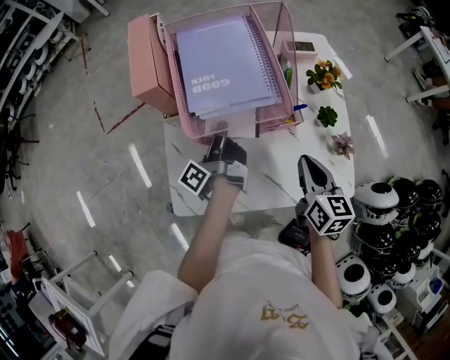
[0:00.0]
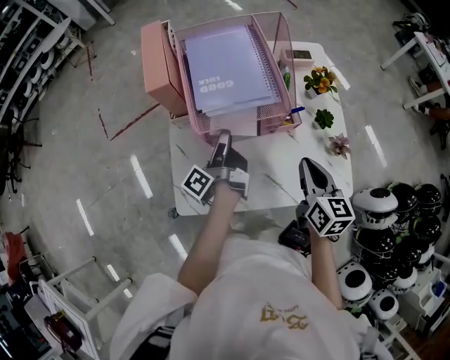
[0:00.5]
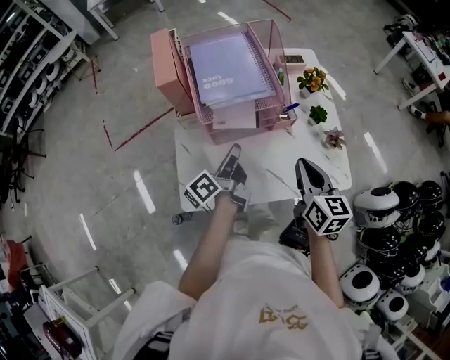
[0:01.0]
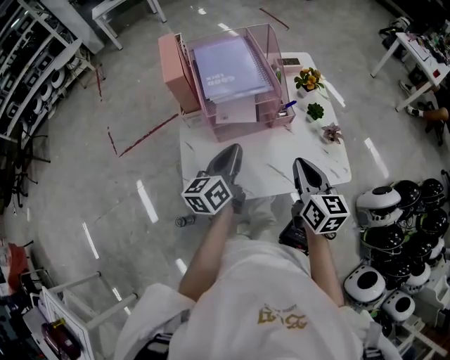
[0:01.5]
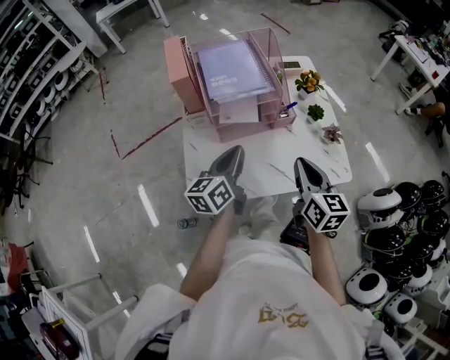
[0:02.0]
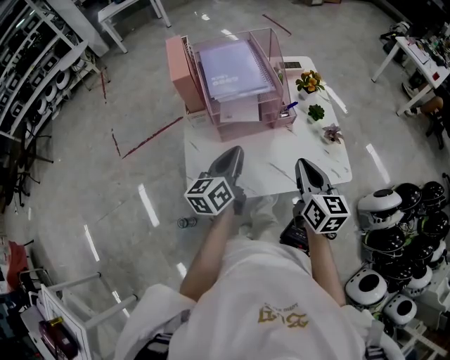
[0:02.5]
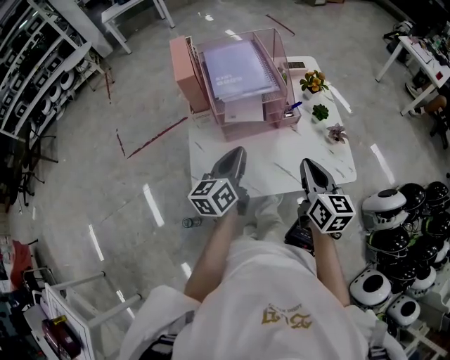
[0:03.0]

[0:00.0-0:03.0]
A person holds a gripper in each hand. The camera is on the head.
0:00.0 to 0:01.5: The right gripper moves about 15 cm.

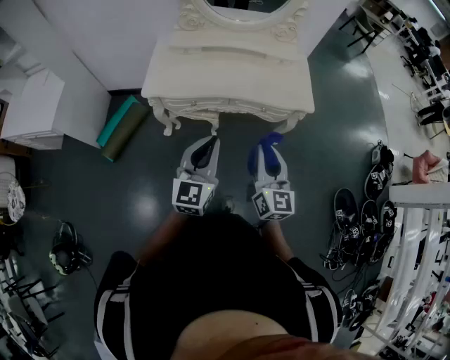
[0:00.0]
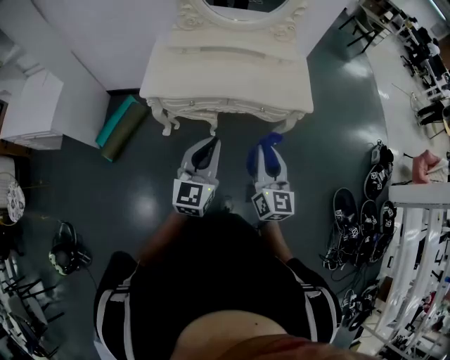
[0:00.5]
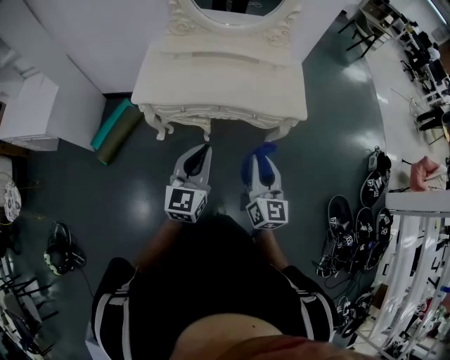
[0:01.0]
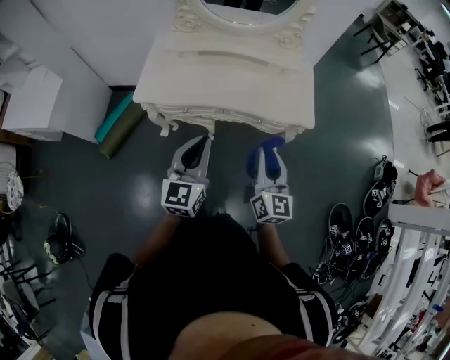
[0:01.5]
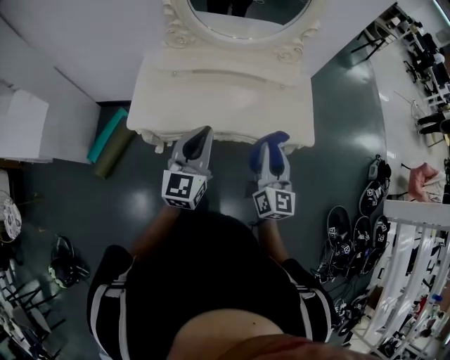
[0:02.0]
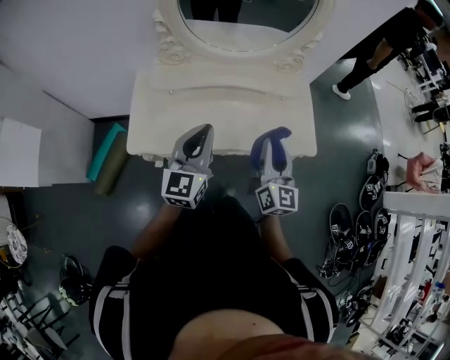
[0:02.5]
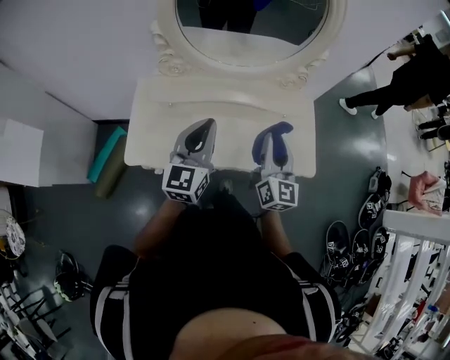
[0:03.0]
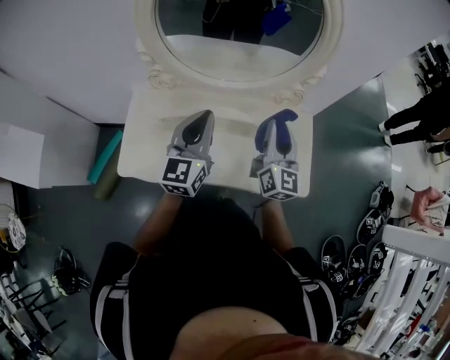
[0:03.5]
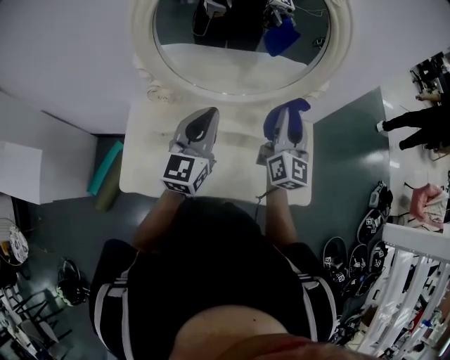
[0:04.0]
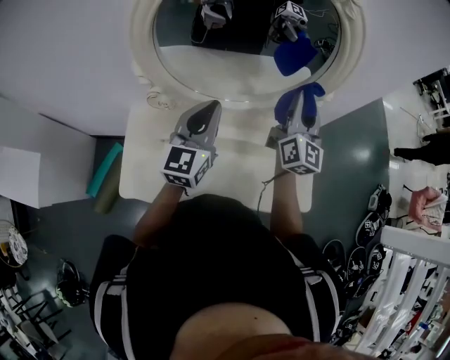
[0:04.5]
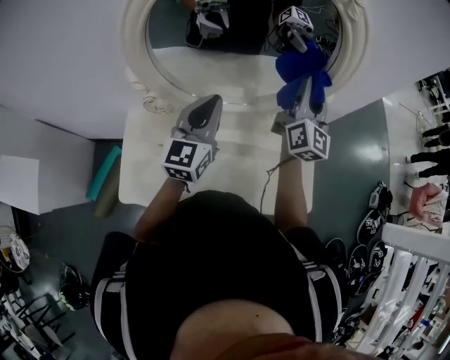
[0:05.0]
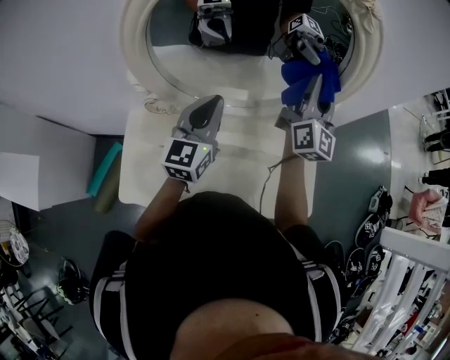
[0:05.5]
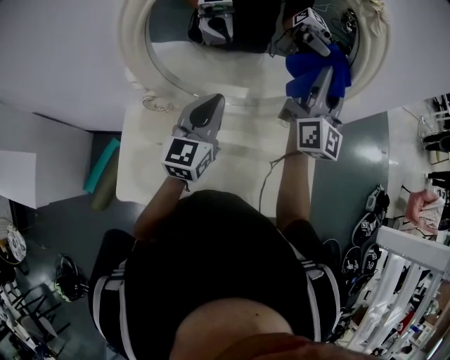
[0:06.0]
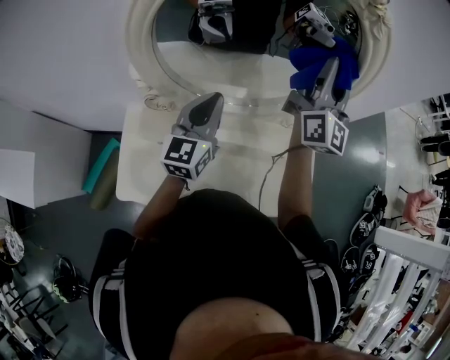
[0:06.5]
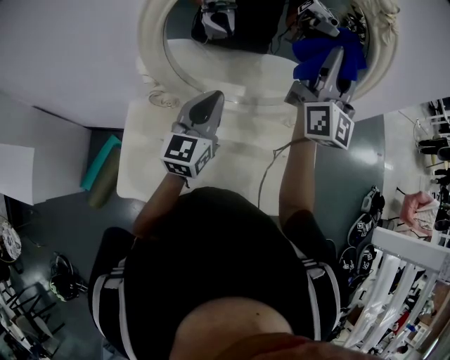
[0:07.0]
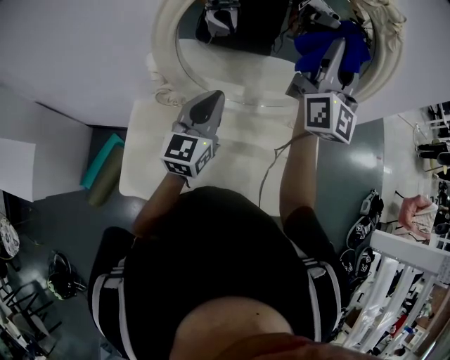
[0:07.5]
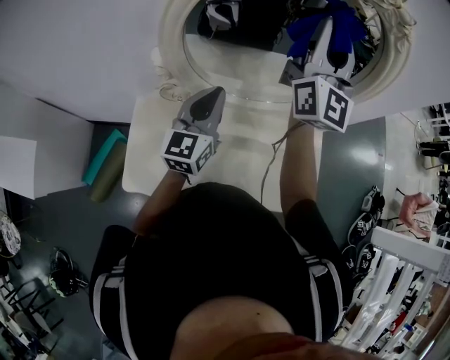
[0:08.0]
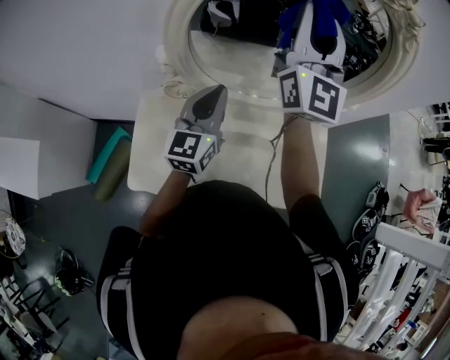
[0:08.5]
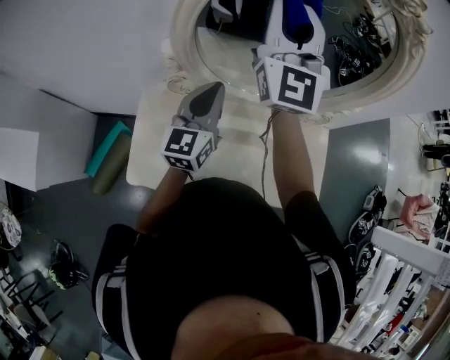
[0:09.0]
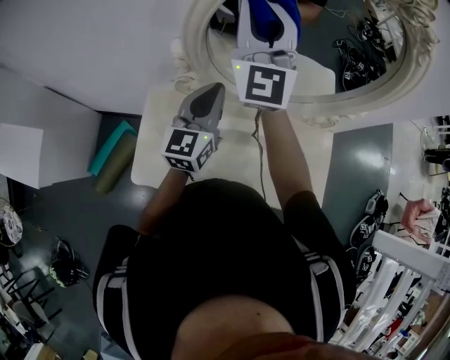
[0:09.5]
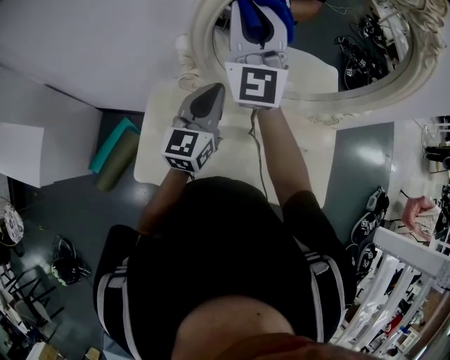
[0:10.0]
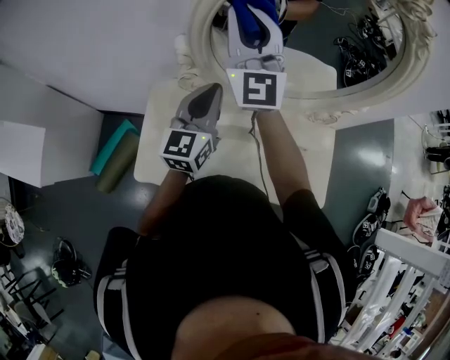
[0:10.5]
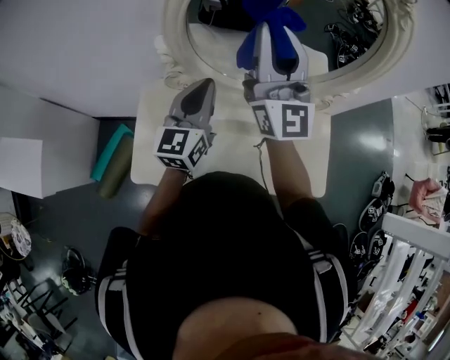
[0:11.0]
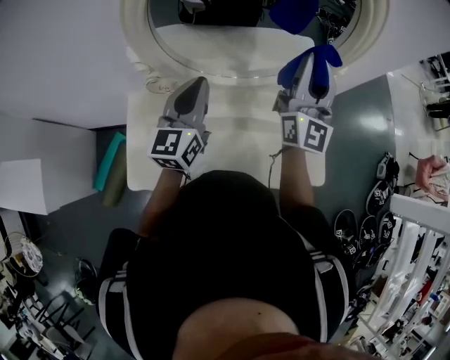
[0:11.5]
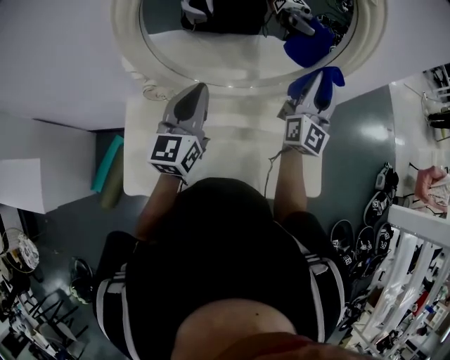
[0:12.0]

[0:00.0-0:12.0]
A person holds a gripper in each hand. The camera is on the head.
0:00.0 to 0:02.0: Both grippers travel together forward, some 25 cm.
0:02.0 to 0:04.0: The two grippers go some 35 cm forward.
0:04.0 to 0:06.0: The right gripper heads forward and upward, covering approximately 20 cm. The left gripper heads forward, covering approximately 10 cm.
0:06.0 to 0:08.0: The left gripper goes some 5 cm to the left; the right gripper heads to the left and upward, covering about 15 cm.
0:08.0 to 0:10.0: The right gripper is displaced to the left by about 20 cm, and changes its angle by about 20 degrees. Meanwhile the left gripper moves to the left, approximately 5 cm.
0:10.0 to 0:12.0: The right gripper is displaced to the right by roughly 40 cm, and rotates some 40 degrees. Meanwhile the left gripper shifts some 10 cm to the right.

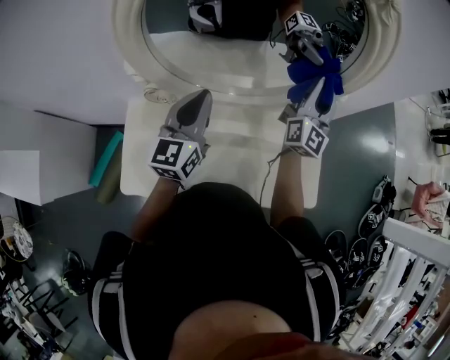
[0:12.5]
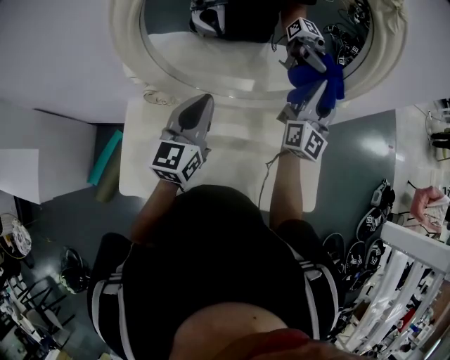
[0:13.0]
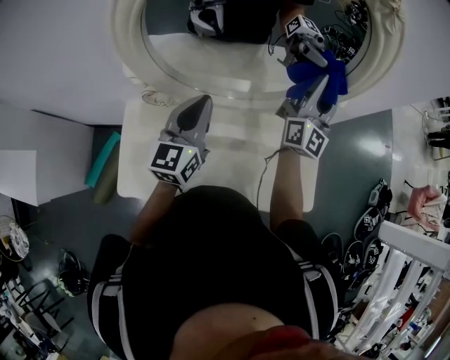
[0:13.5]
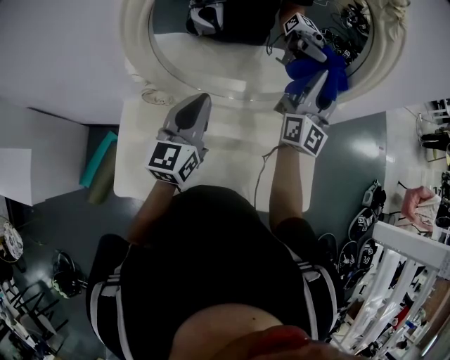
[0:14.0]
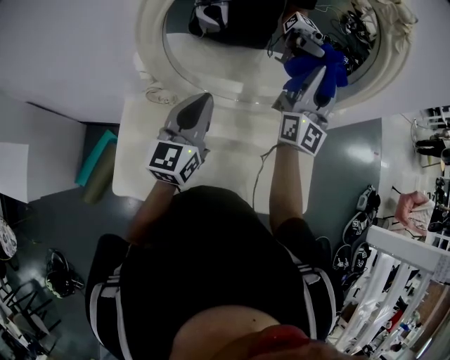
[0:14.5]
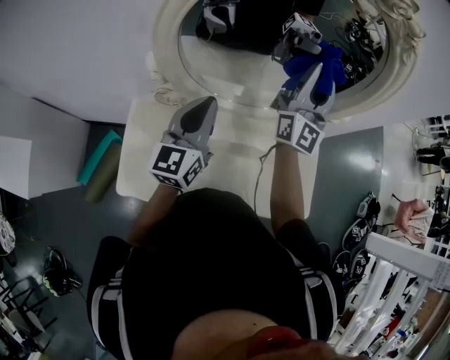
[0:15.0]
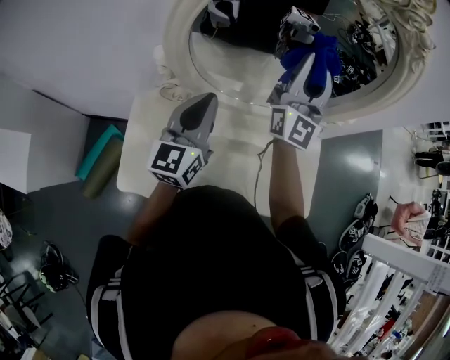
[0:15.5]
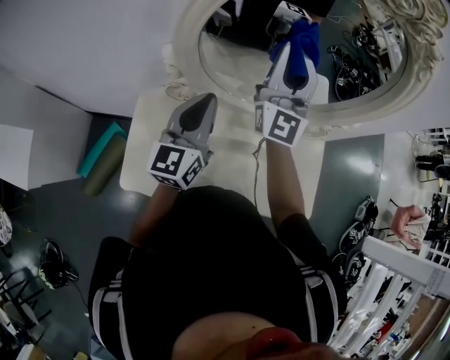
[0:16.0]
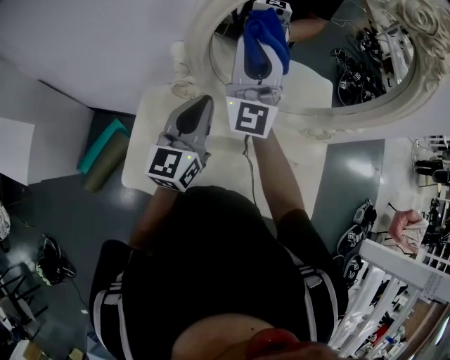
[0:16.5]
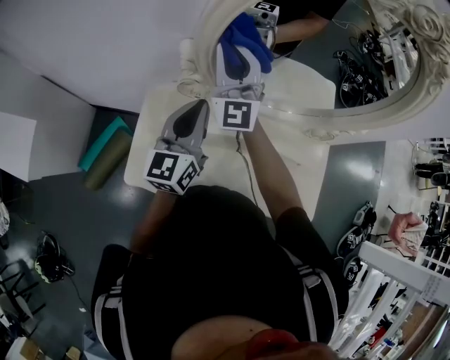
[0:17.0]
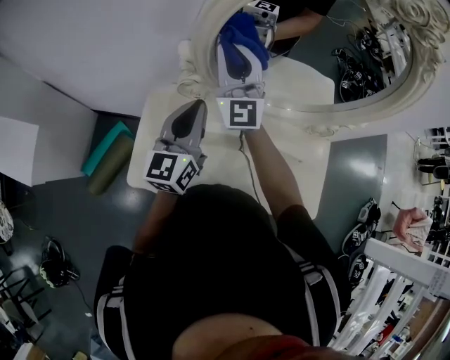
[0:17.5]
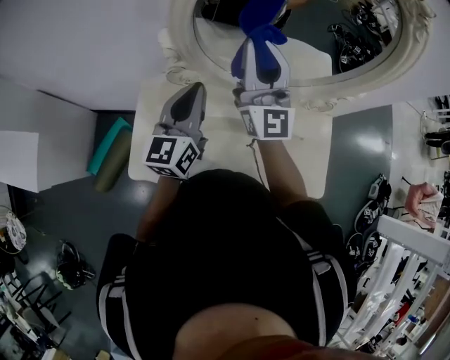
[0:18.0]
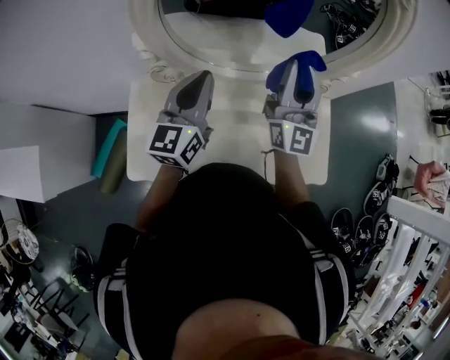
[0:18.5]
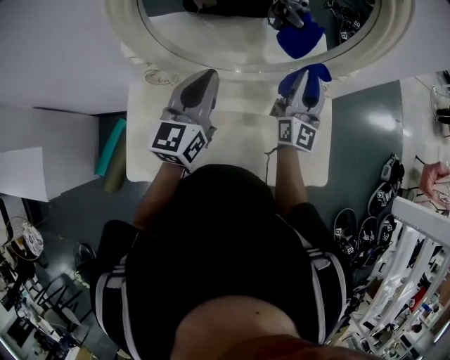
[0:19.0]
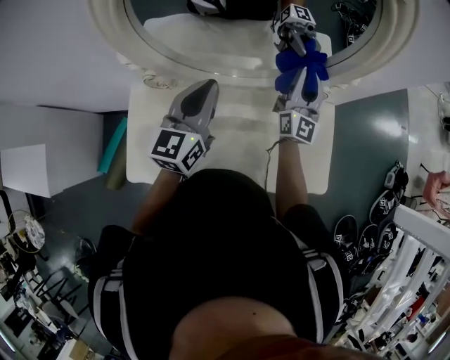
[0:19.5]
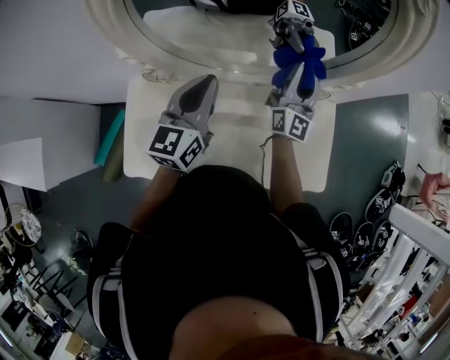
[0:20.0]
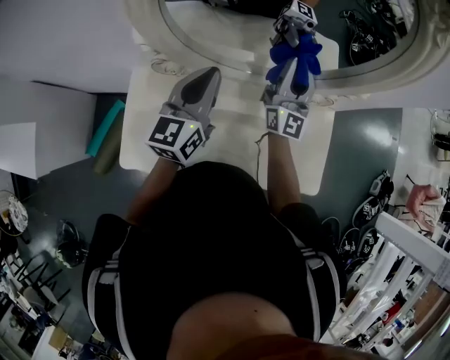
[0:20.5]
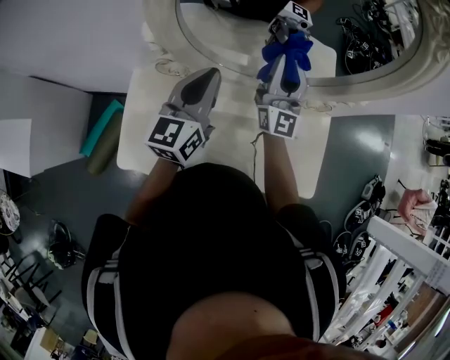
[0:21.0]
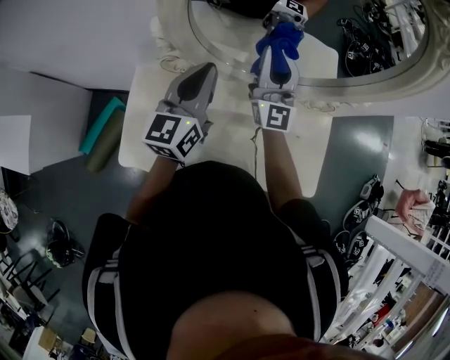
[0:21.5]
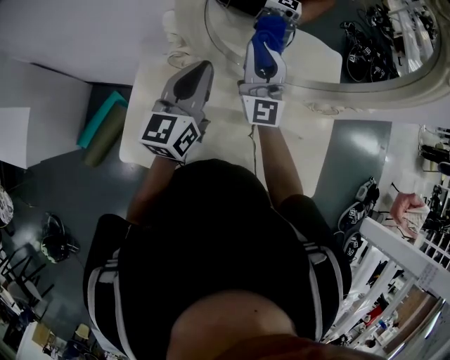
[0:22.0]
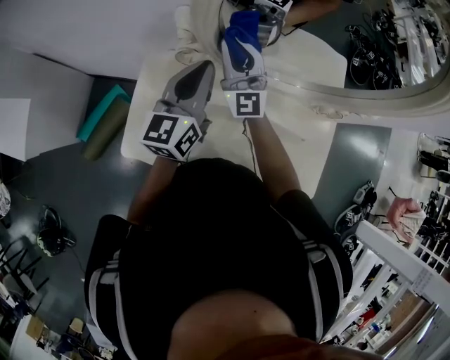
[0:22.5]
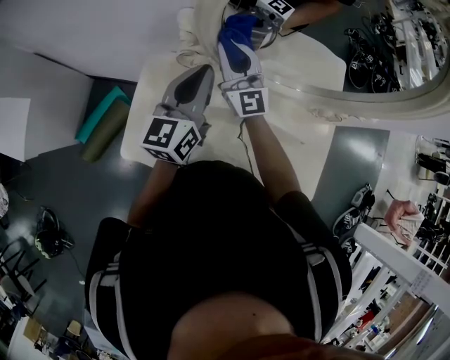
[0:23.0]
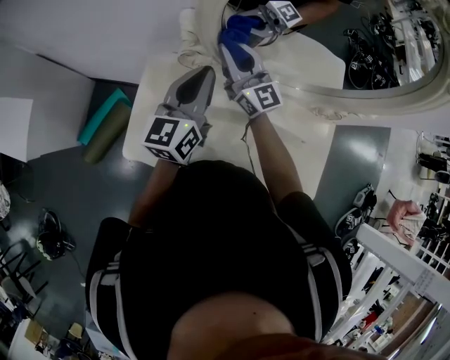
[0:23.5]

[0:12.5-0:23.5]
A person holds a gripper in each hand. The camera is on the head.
0:12.5 to 0:14.5: The right gripper shifts roughly 10 cm upward and to the left.
0:14.5 to 0:16.0: The right gripper shifts about 15 cm to the left, while the left gripper shifts roughly 5 cm to the left.
0:16.0 to 0:18.0: The right gripper heads backward, covering about 5 cm, and reaches roughly 15 cm to the left, then returns.
0:18.0 to 0:20.0: The right gripper goes roughly 30 cm to the right, downward and forward, and rotates about 30 degrees. Meanwhile the left gripper moves to the right and forward, roughly 15 cm.
0:20.0 to 0:21.5: The left gripper moves to the left, approximately 10 cm; the right gripper shifts approximately 20 cm to the left, and changes its angle by some 20 degrees.
0:21.5 to 0:23.5: The left gripper shifts roughly 5 cm to the left, while the right gripper heads to the left, covering some 15 cm, and turns by approximately 40 degrees.

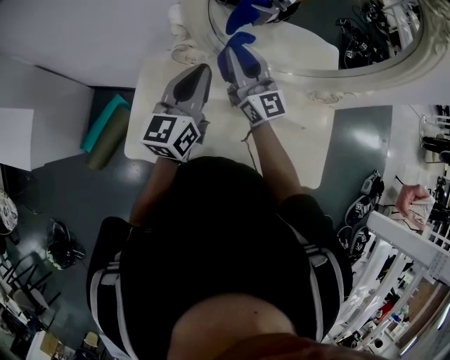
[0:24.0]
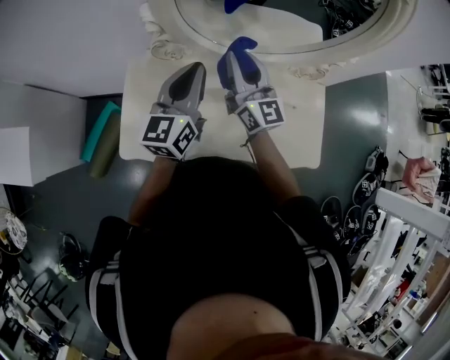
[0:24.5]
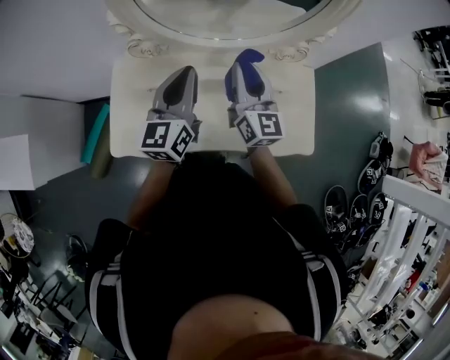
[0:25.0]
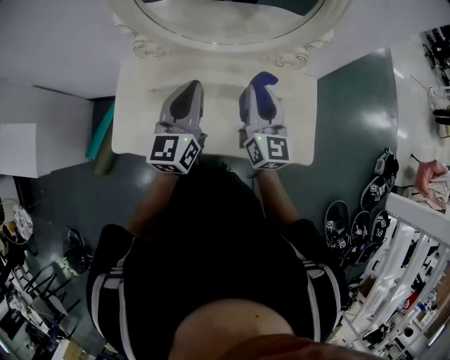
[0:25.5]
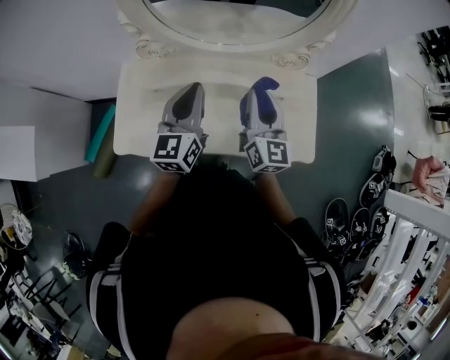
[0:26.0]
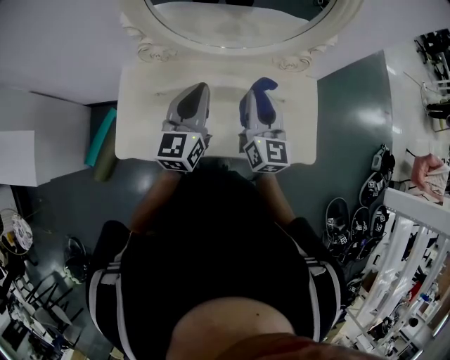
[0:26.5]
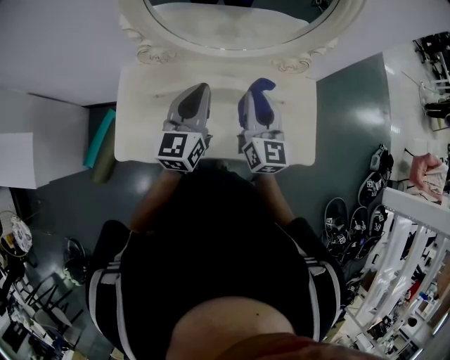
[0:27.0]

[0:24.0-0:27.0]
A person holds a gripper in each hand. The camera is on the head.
0:24.0 to 0:25.5: The right gripper shifts approximately 30 cm to the right and backward, and turns by roughly 30 degrees. The left gripper goes some 20 cm to the right and backward.
0:25.5 to 0:27.0: The grippers move only a little.
